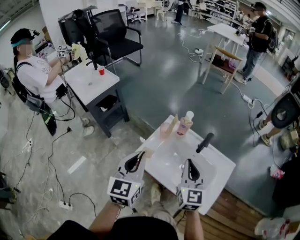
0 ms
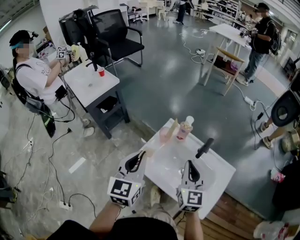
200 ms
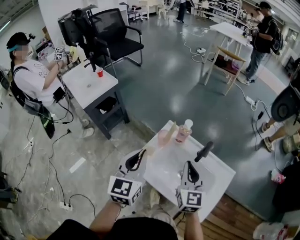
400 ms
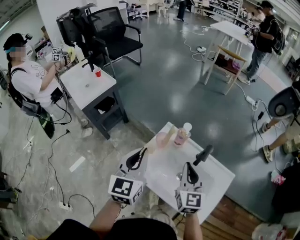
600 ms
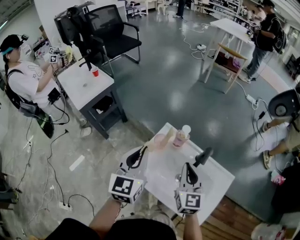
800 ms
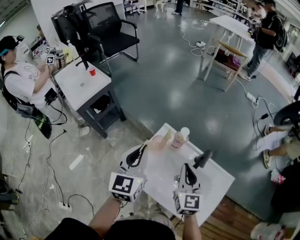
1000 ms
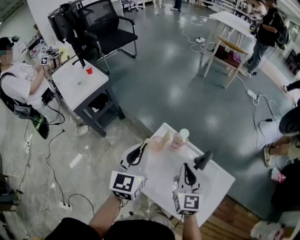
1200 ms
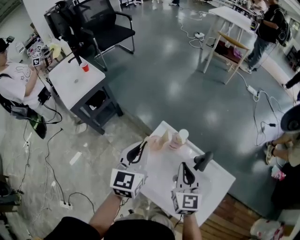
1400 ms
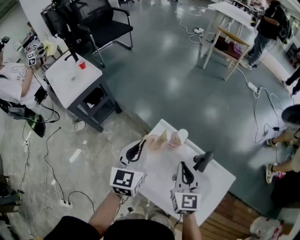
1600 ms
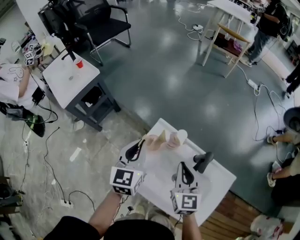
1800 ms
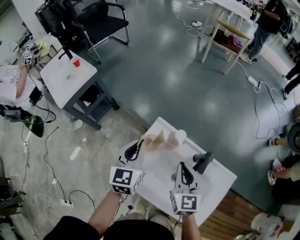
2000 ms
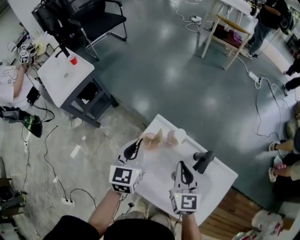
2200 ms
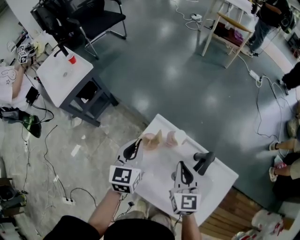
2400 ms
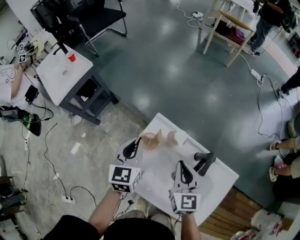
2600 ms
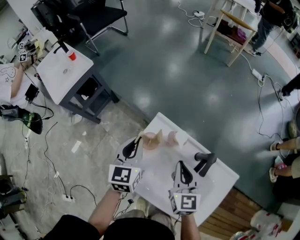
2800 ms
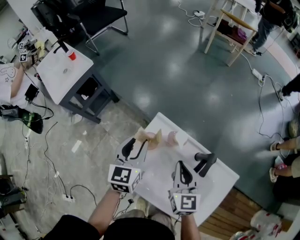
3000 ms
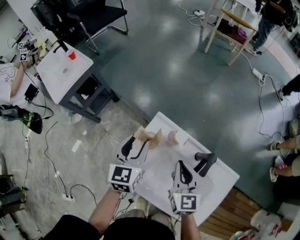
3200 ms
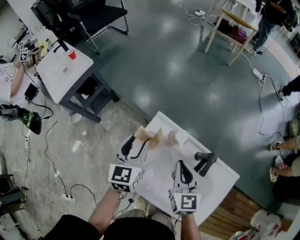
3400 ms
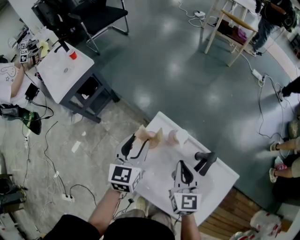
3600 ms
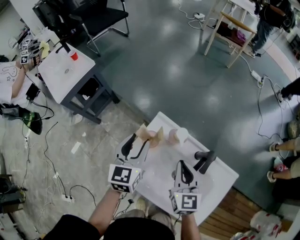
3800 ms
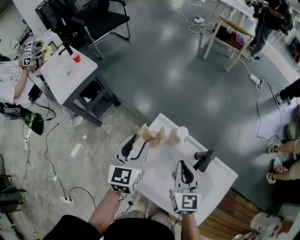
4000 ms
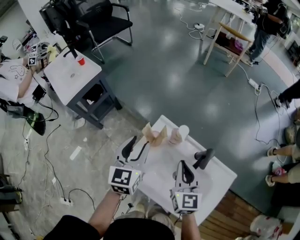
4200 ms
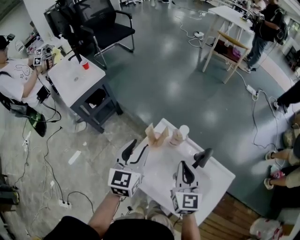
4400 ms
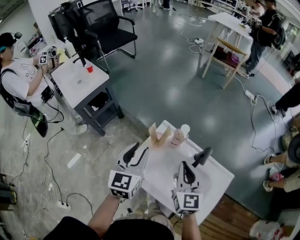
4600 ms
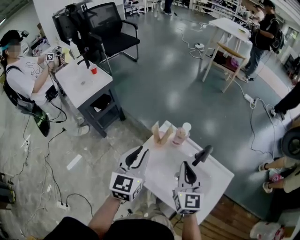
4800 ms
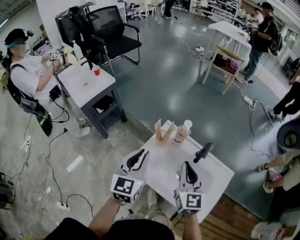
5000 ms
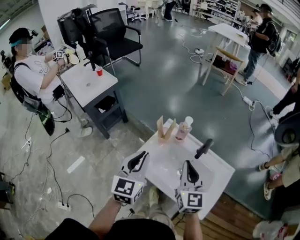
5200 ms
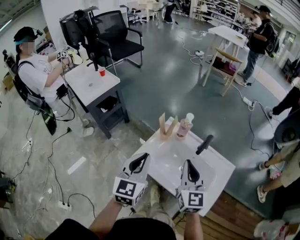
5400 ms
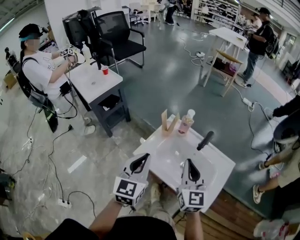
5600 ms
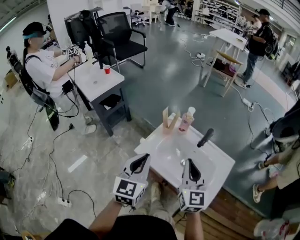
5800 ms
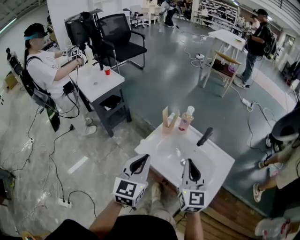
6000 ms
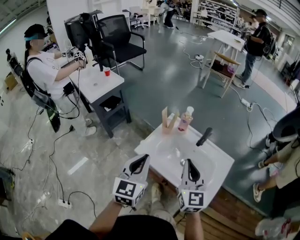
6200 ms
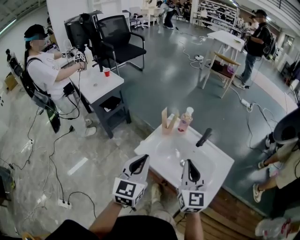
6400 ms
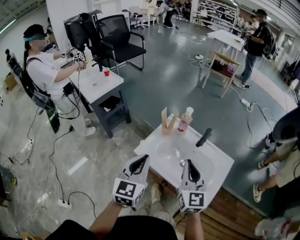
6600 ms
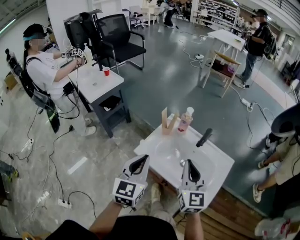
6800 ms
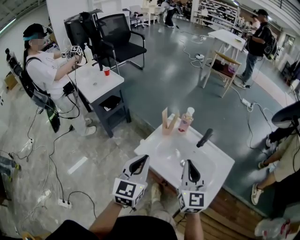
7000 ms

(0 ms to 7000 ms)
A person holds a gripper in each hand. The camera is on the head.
0 ms - 1400 ms: The left gripper is displaced forward by roughly 20 cm; the right gripper moves forward and downward, some 15 cm.
1400 ms - 2800 ms: The left gripper heads downward and forward, covering roughly 10 cm, while the right gripper is displaced downward by roughly 5 cm.
2800 ms - 4200 ms: The two grippers go about 5 cm upward. The left gripper opens.
4200 ms - 5600 ms: The right gripper heads backward and upward, covering roughly 20 cm; the left gripper travels backward by approximately 25 cm, and closes.
5600 ms - 7000 ms: The grippers make only small movements.

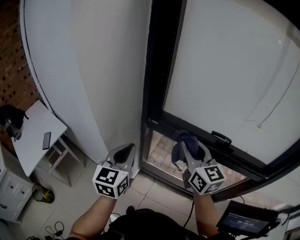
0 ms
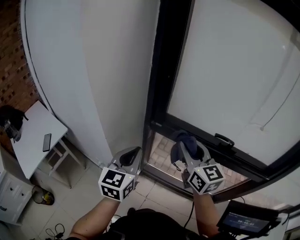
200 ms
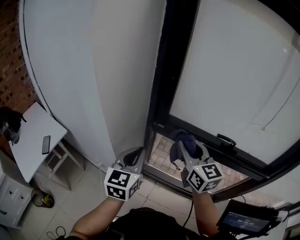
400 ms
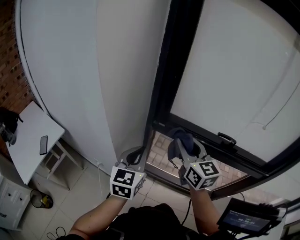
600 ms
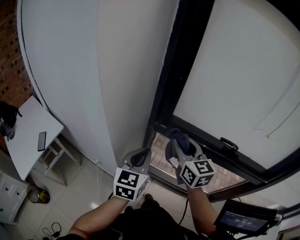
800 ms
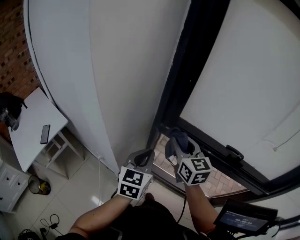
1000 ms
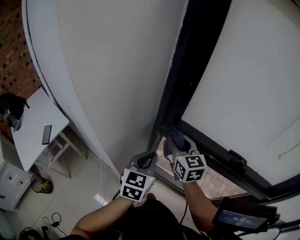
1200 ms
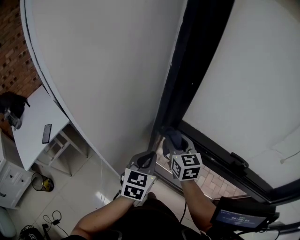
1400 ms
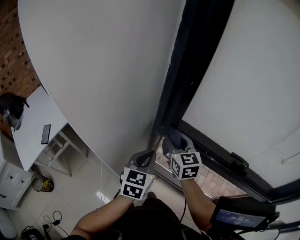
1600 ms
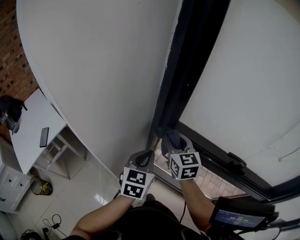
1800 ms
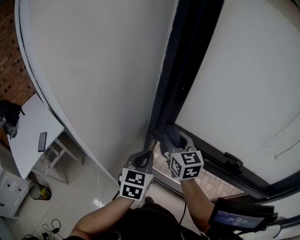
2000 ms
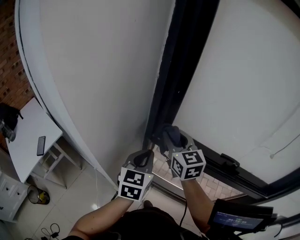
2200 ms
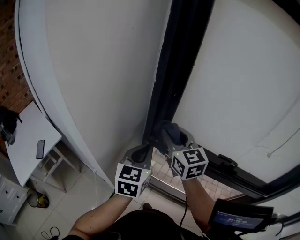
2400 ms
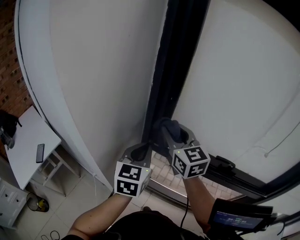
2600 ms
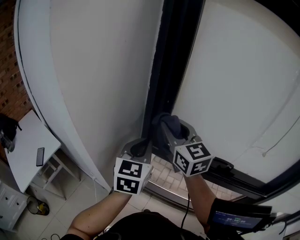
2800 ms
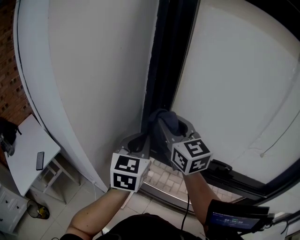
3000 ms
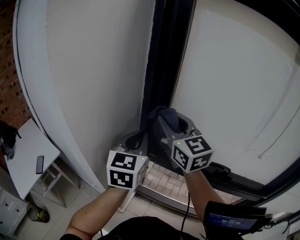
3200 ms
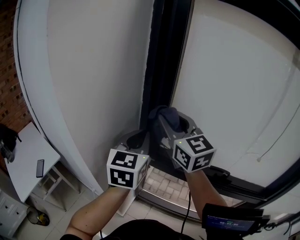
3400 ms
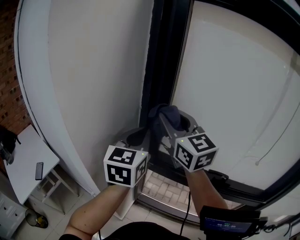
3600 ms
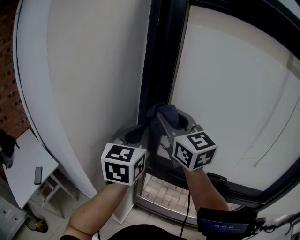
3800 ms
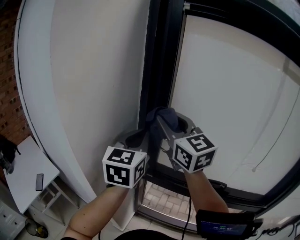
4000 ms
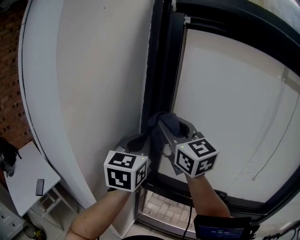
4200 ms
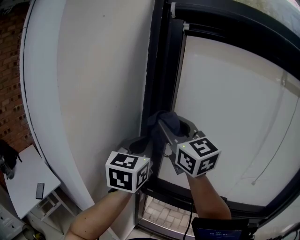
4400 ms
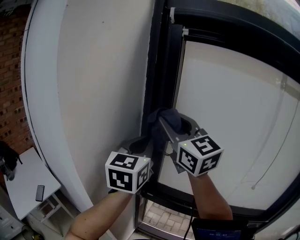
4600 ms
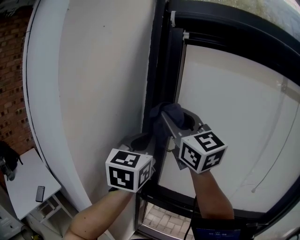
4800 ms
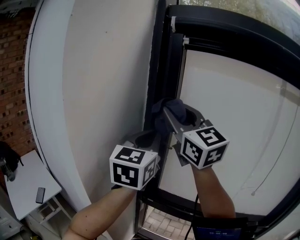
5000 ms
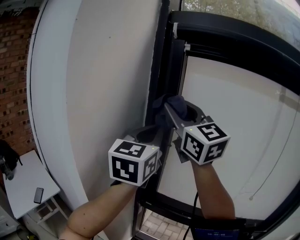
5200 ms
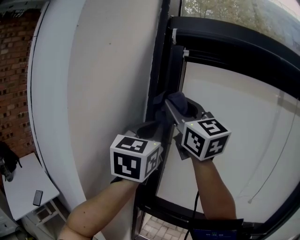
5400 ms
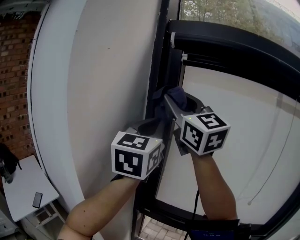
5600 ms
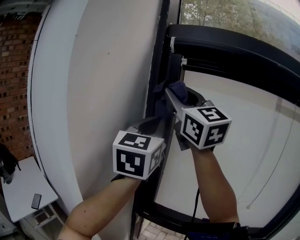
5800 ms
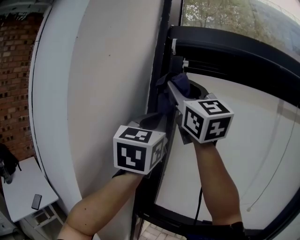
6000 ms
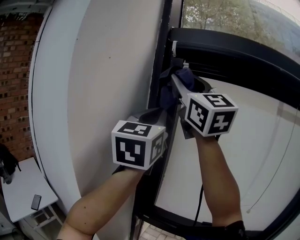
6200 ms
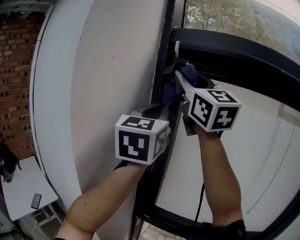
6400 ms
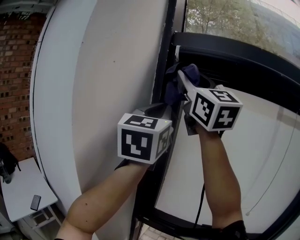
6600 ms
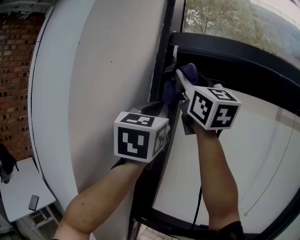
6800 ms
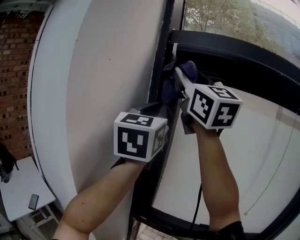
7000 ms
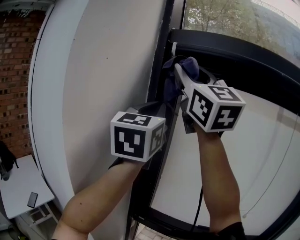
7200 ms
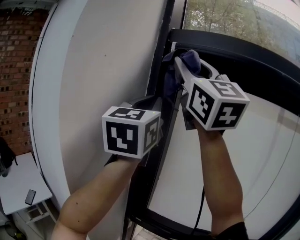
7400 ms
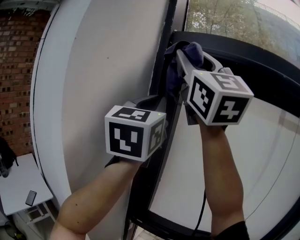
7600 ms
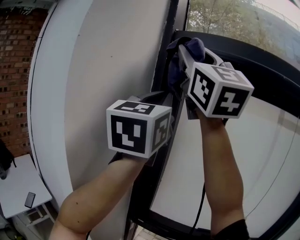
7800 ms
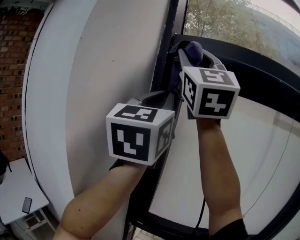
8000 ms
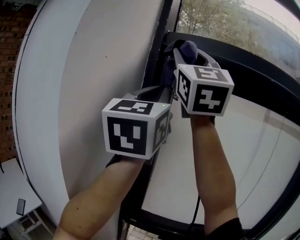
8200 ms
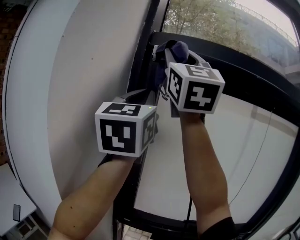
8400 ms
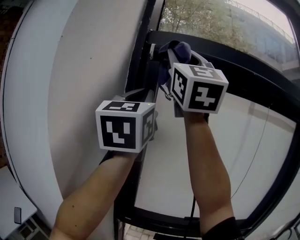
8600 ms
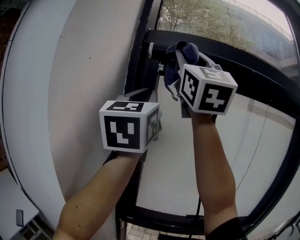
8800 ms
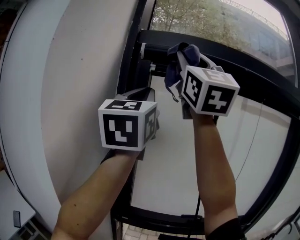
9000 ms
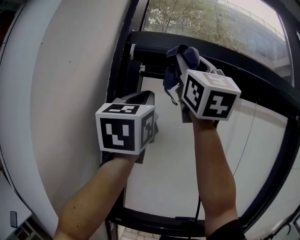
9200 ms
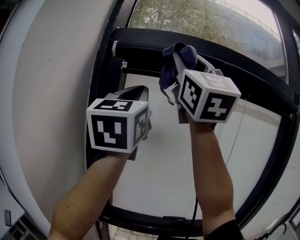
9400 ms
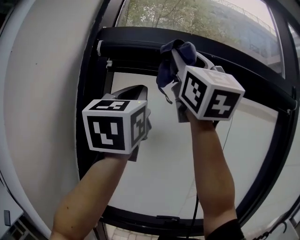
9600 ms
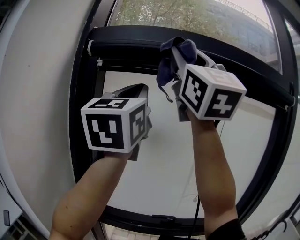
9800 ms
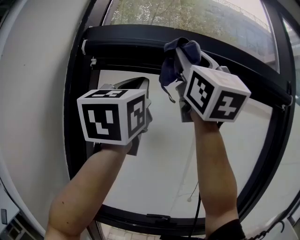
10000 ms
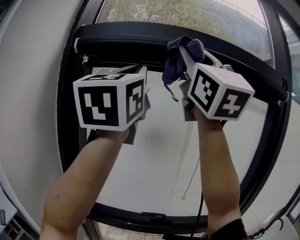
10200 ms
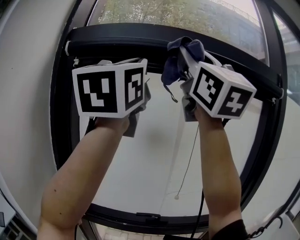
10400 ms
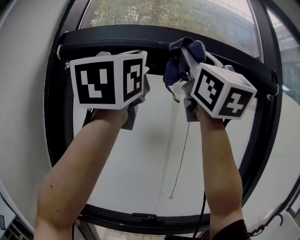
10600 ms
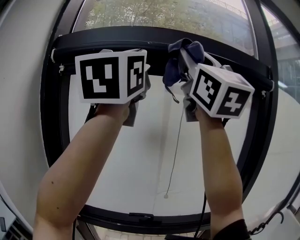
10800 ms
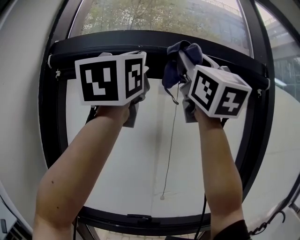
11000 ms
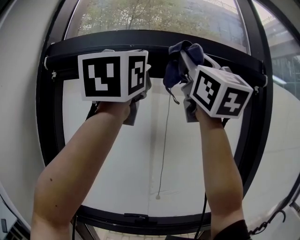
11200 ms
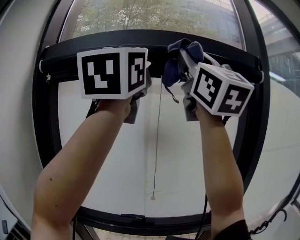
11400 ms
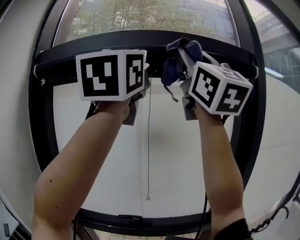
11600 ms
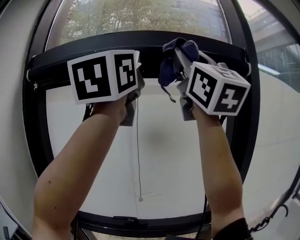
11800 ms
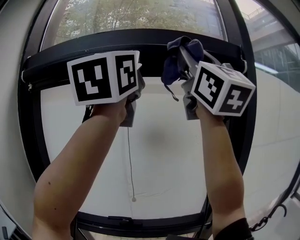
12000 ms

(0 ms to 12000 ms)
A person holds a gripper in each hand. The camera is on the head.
0 ms - 1600 ms: The left gripper travels forward and downward by about 15 cm. The right gripper travels forward, downward and to the left by some 25 cm.
1600 ms - 3000 ms: Both grippers move upward, about 20 cm.
3000 ms - 4400 ms: The two grippers go about 15 cm upward.
4400 ms - 6000 ms: The two grippers go some 20 cm upward. The right gripper swivels about 20 degrees.
6000 ms - 7600 ms: The right gripper goes approximately 10 cm upward and backward. Meanwhile the left gripper heads upward, covering approximately 5 cm.
7600 ms - 9000 ms: The left gripper changes place by roughly 5 cm. The right gripper moves to the right, some 10 cm, and swivels some 20 degrees.
9000 ms - 10400 ms: The two grippers go some 20 cm to the right.
10400 ms - 12000 ms: Both grippers move to the right, about 20 cm.

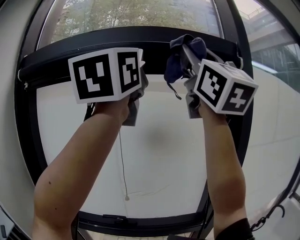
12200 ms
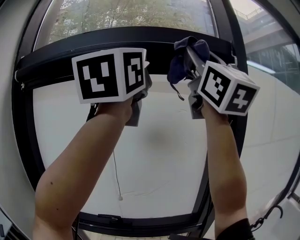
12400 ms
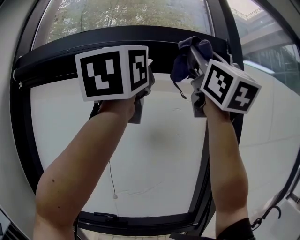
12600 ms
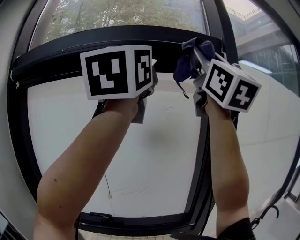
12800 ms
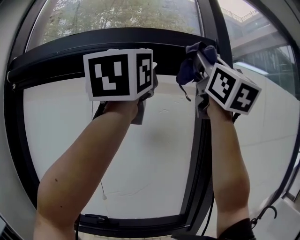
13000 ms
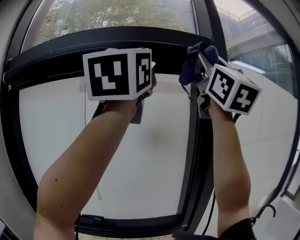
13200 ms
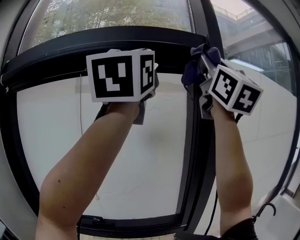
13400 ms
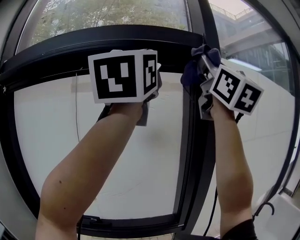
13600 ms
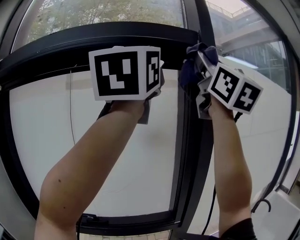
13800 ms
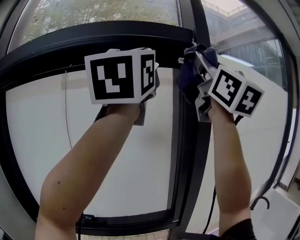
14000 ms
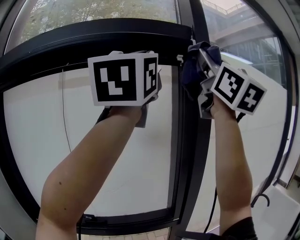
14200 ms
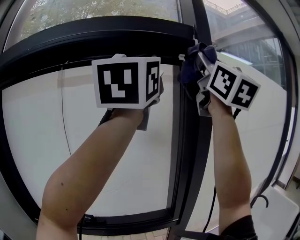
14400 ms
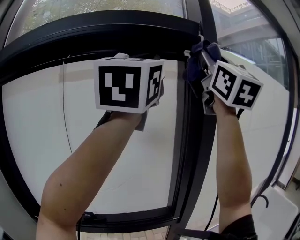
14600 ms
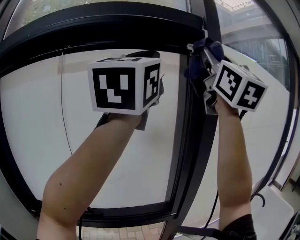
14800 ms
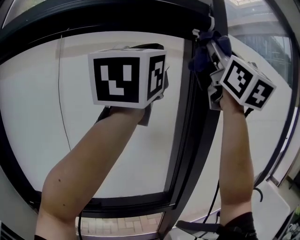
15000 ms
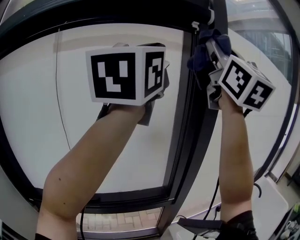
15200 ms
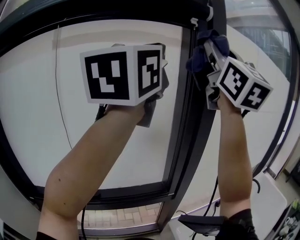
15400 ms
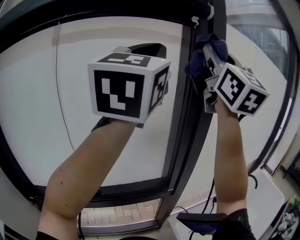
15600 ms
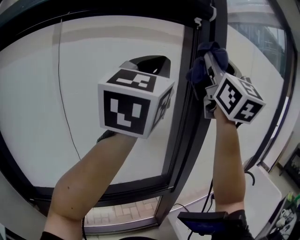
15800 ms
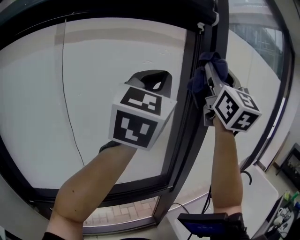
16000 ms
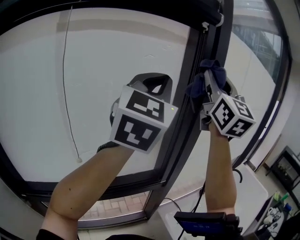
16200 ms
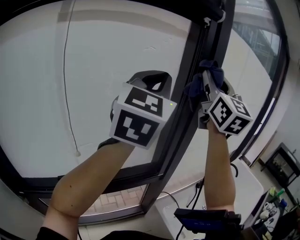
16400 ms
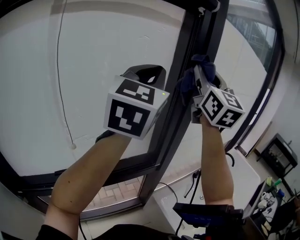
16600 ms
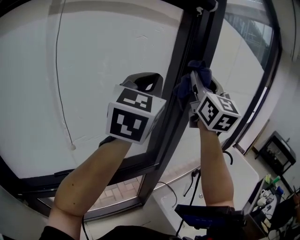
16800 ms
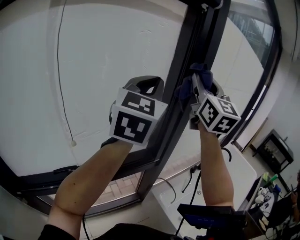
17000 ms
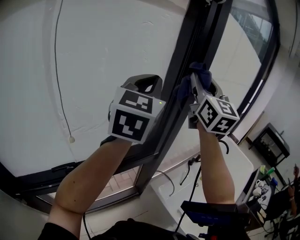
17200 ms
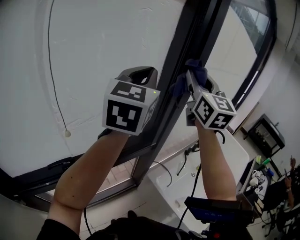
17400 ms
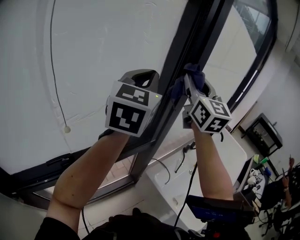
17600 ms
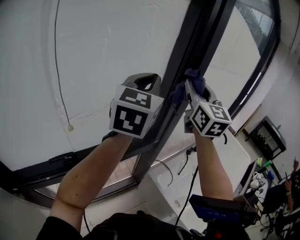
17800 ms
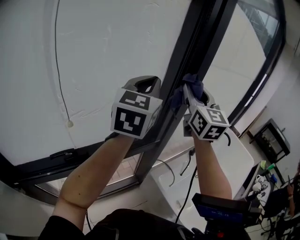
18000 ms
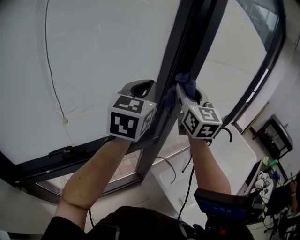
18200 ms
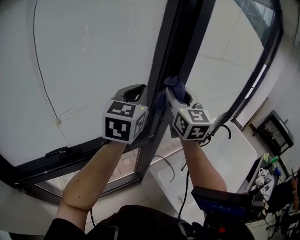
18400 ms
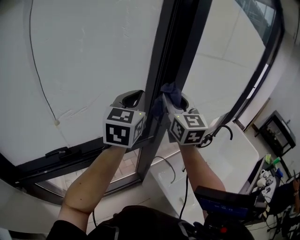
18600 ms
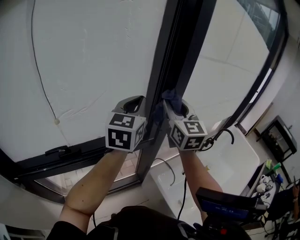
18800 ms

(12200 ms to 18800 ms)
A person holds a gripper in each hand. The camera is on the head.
12200 ms - 13800 ms: Both grippers travel together to the right, some 20 cm.
13800 ms - 15400 ms: The left gripper shifts some 10 cm downward. Meanwhile the right gripper goes roughly 5 cm downward.
15400 ms - 17200 ms: The two grippers go about 20 cm downward. The right gripper turns by about 20 degrees.
17200 ms - 18800 ms: Both grippers travel together downward, roughly 20 cm.
